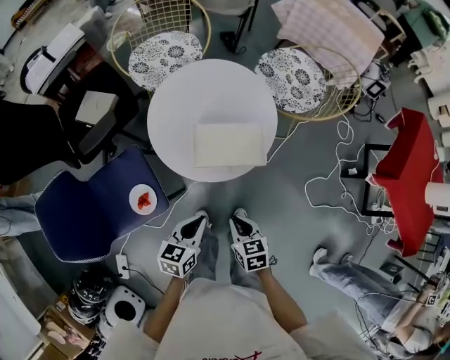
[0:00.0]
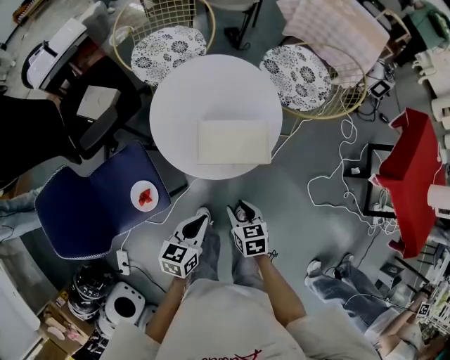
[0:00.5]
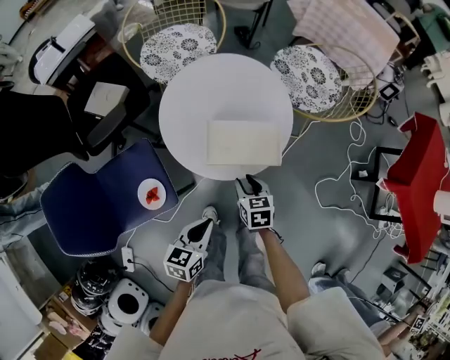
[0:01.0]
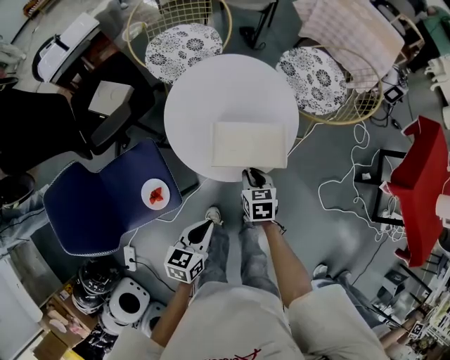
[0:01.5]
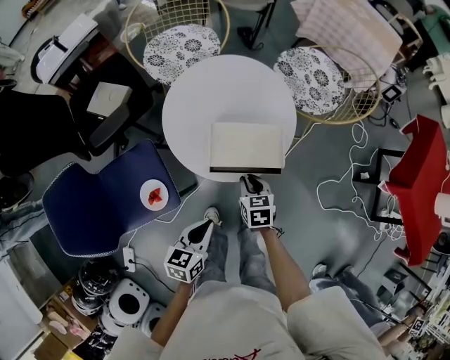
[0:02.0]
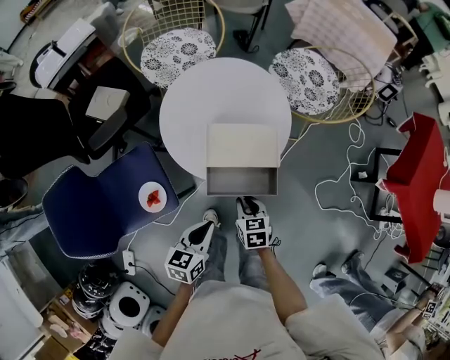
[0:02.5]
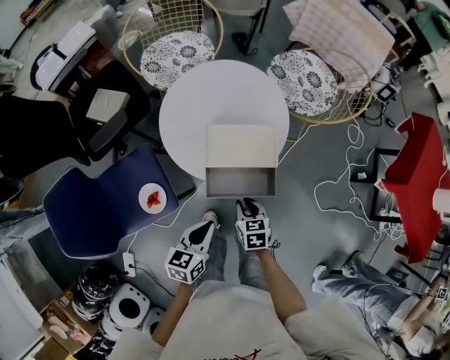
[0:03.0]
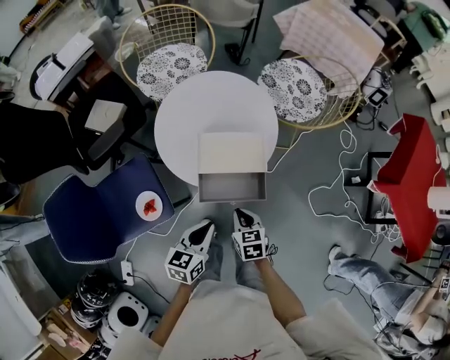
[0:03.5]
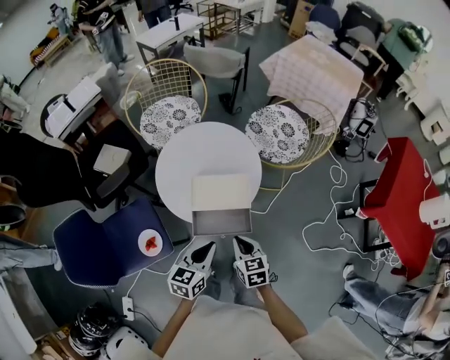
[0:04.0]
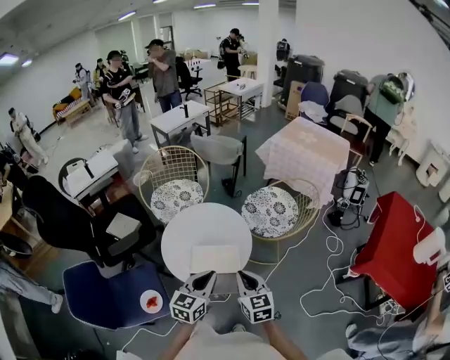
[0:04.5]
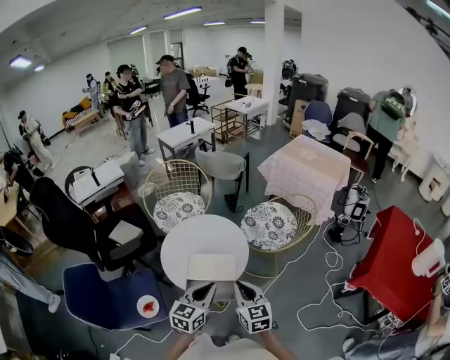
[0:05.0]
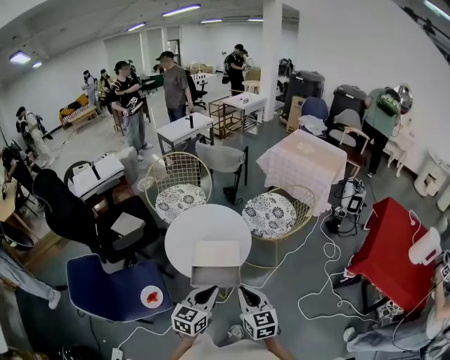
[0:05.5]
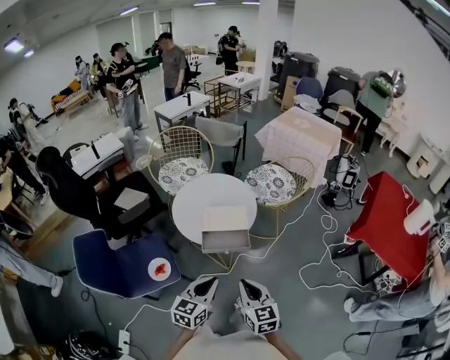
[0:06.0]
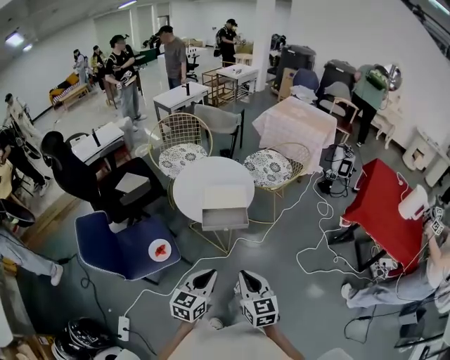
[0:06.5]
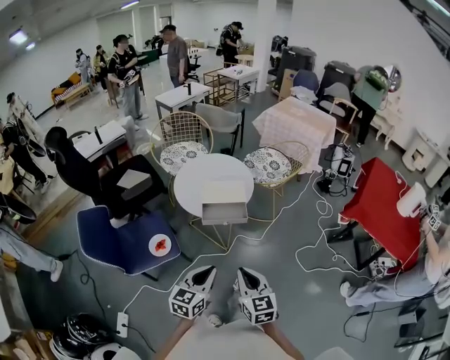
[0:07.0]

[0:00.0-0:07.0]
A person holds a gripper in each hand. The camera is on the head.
0:00.0 to 0:02.0: The right gripper travels forward by roughly 15 cm, and opens, then closes once more.
0:02.0 to 0:03.5: The right gripper travels backward by about 10 cm.
0:03.5 to 0:05.0: The right gripper travels upward by approximately 25 cm, and angles its fingers upward, by approximately 30 degrees. The left gripper shifts roughly 20 cm upward, to the right and forward, and rotates roughly 20 degrees.
0:05.0 to 0:07.0: Both grippers move backward, approximately 30 cm.

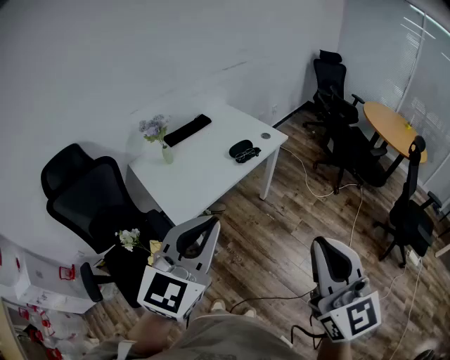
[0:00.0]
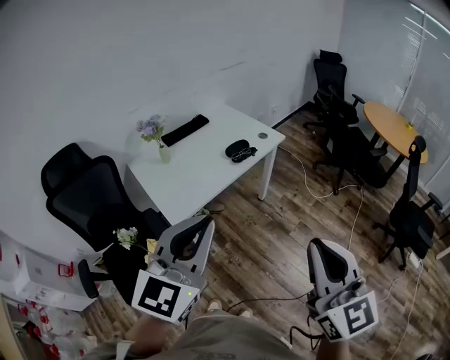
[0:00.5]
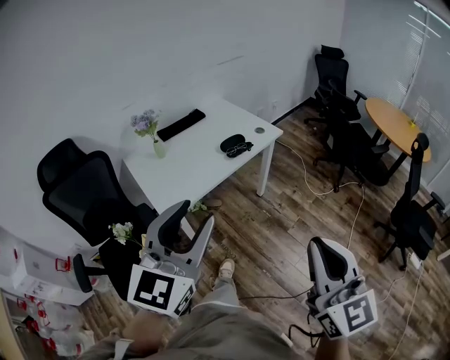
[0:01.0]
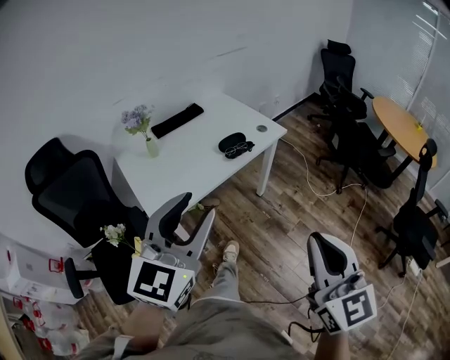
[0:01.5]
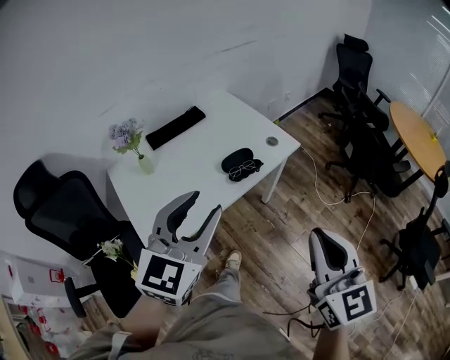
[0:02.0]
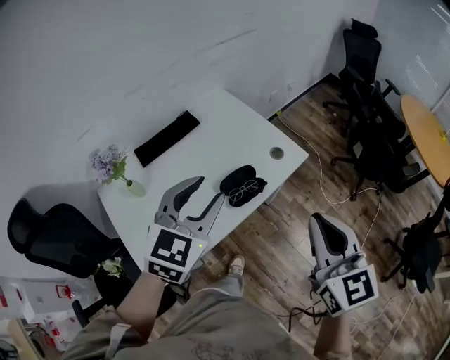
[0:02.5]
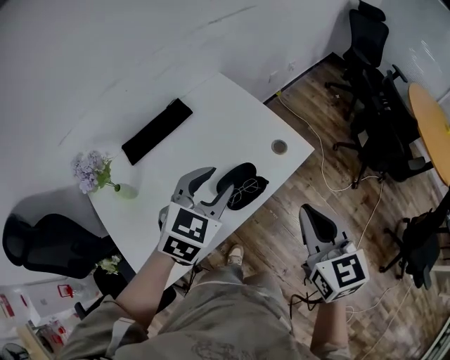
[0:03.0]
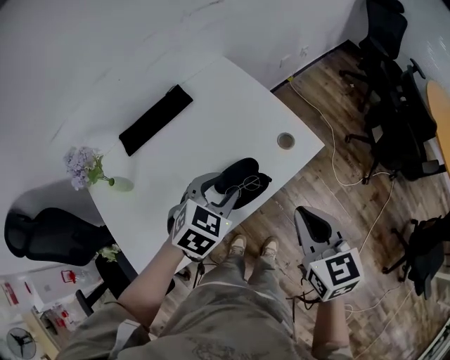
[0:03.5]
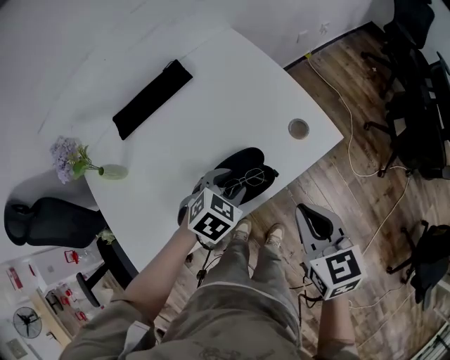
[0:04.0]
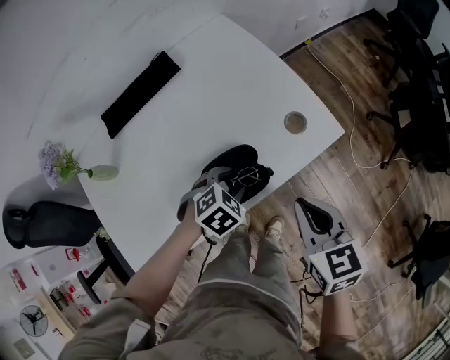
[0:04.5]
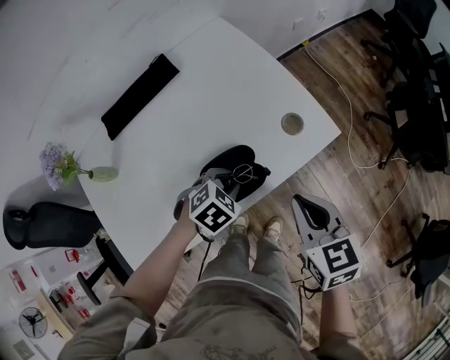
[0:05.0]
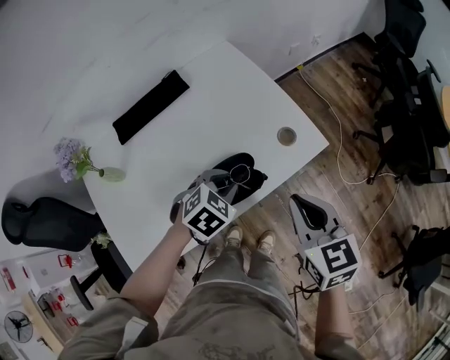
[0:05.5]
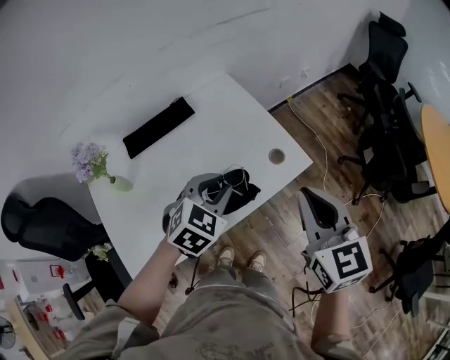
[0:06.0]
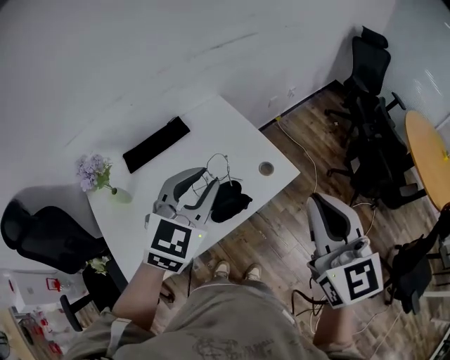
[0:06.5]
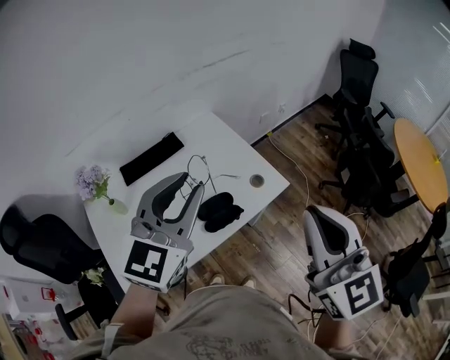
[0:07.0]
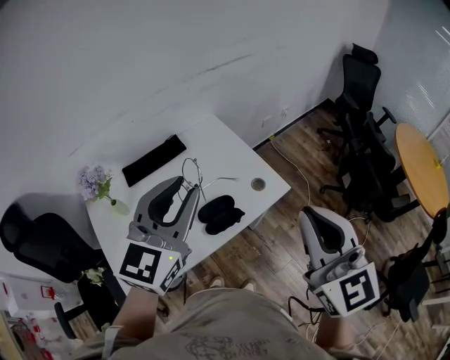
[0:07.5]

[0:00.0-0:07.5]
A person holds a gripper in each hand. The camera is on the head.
0:00.0 to 0:02.0: The grippers both shift forward by some 25 cm. The left gripper opens its fingers.
0:02.0 to 0:04.0: The right gripper shifts some 35 cm forward and downward, and swivels approximately 30 degrees, while the left gripper heads downward and forward, covering approximately 40 cm, and angles its fingers downward, by approximately 50 degrees.
0:04.0 to 0:05.5: The left gripper reaches about 5 cm downward, then returns, and closes up.
0:05.5 to 0:07.5: Both grippers travel together upward, about 30 cm. The right gripper turns by approximately 30 degrees. The left gripper tilts its fingers about 60 degrees upward.

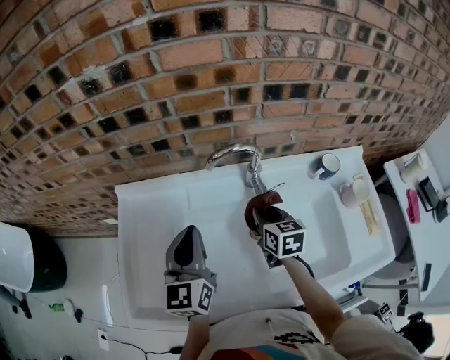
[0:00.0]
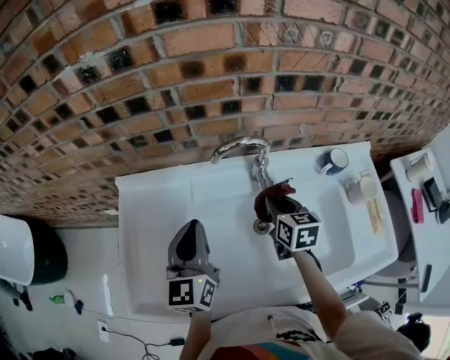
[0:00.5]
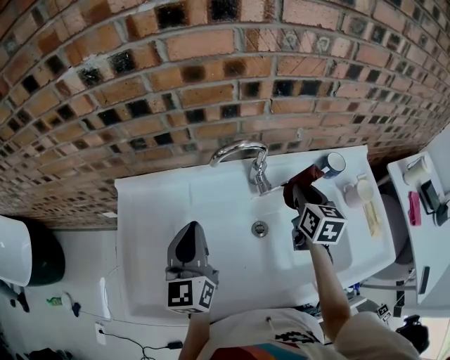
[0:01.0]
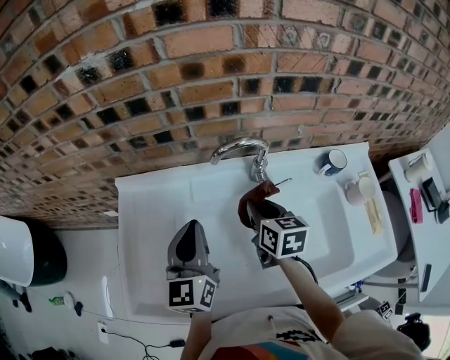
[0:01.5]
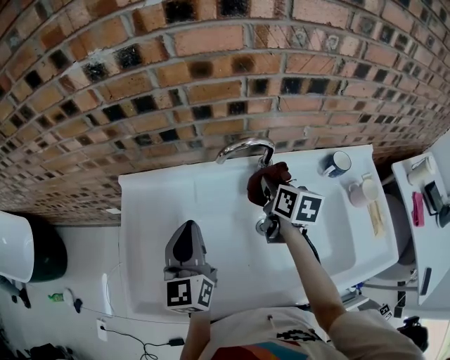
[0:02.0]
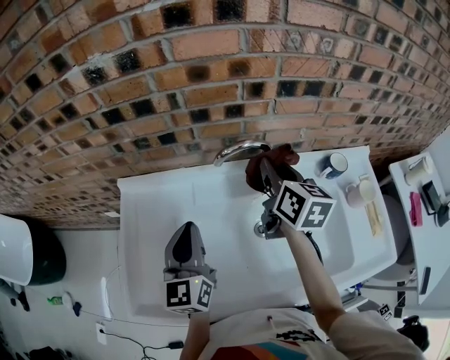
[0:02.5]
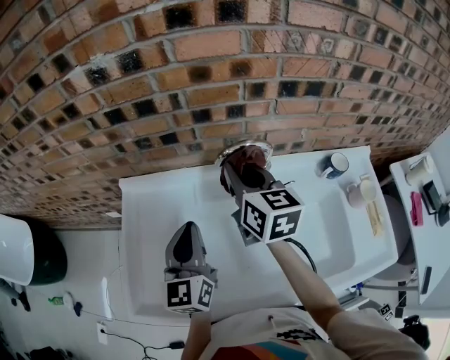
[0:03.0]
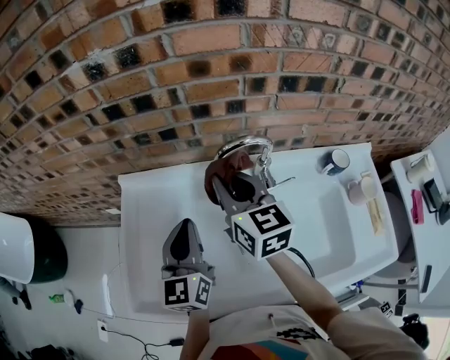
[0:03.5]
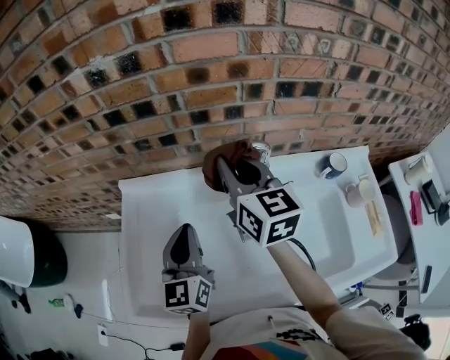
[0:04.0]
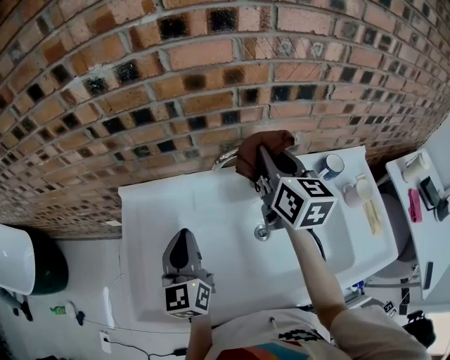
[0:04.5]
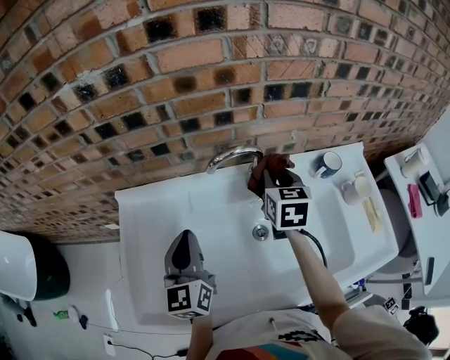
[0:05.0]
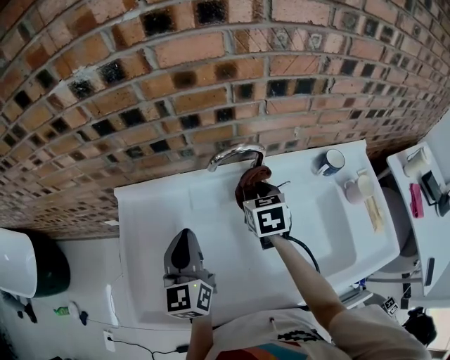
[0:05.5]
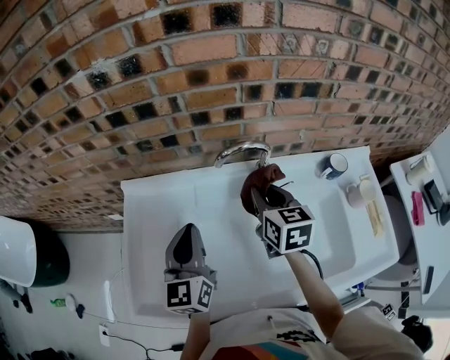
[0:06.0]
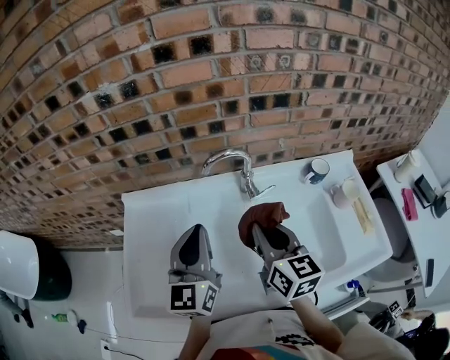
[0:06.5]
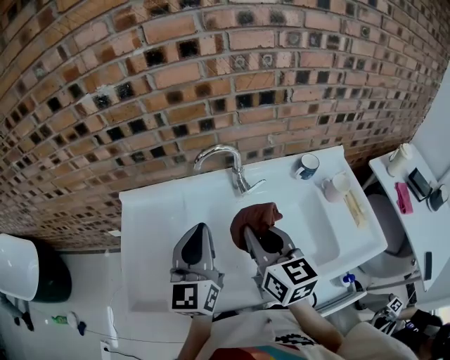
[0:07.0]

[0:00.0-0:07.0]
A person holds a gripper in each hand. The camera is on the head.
0:00.0 to 0:02.0: The right gripper swings left and right, about 15 cm each way, with 2 reversals.
0:02.0 to 0:03.5: The right gripper travels to the left and upward by about 20 cm, and turns by some 30 degrees.
0:03.5 to 0:05.0: The right gripper travels to the right and downward by approximately 15 cm, and swivels approximately 30 degrees.
0:05.0 to 0:07.0: The left gripper shifts about 15 cm upward, to the right and backward. The right gripper travels backward by about 20 cm, and turns by some 30 degrees.

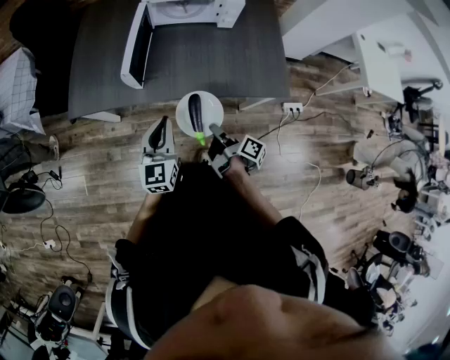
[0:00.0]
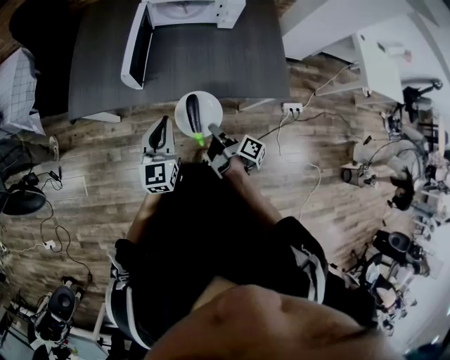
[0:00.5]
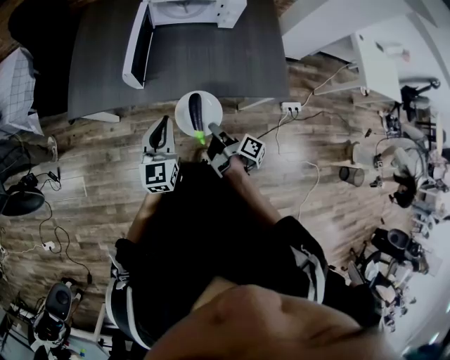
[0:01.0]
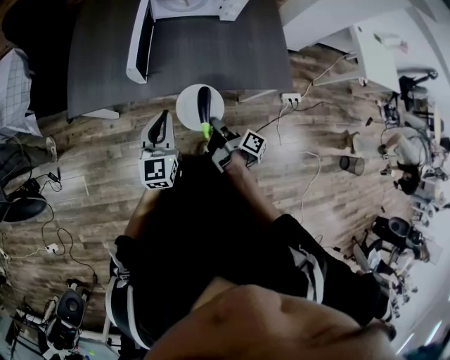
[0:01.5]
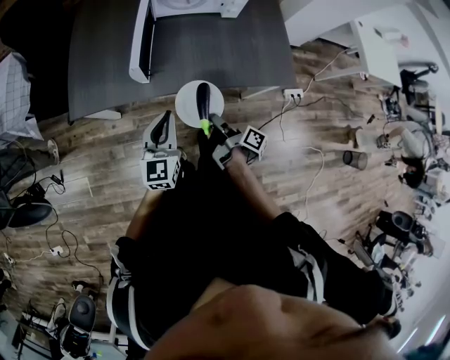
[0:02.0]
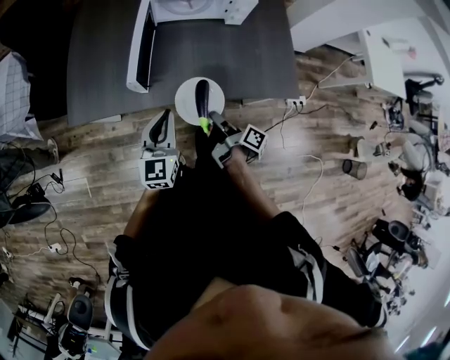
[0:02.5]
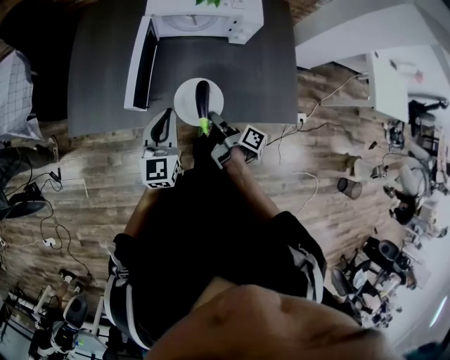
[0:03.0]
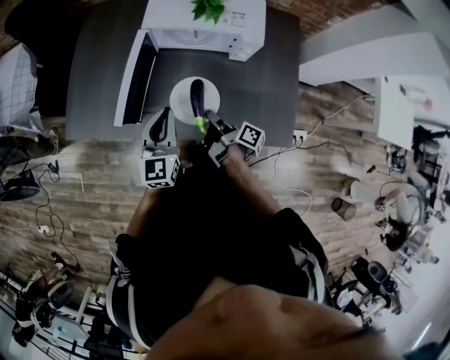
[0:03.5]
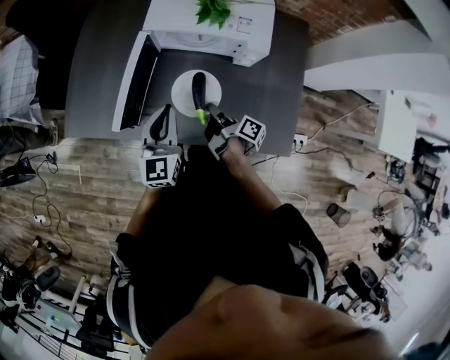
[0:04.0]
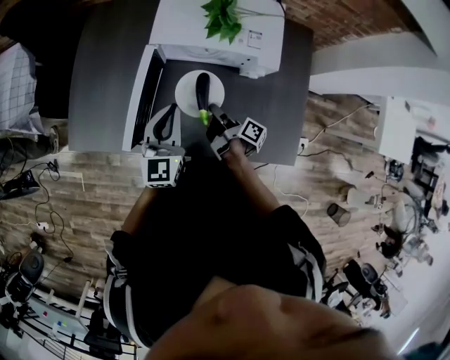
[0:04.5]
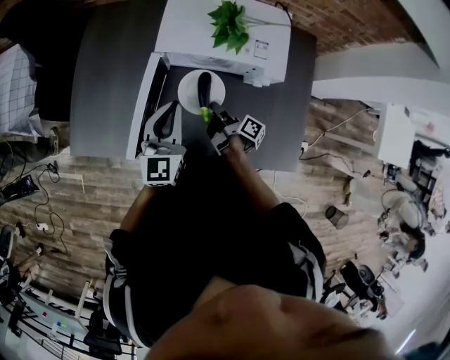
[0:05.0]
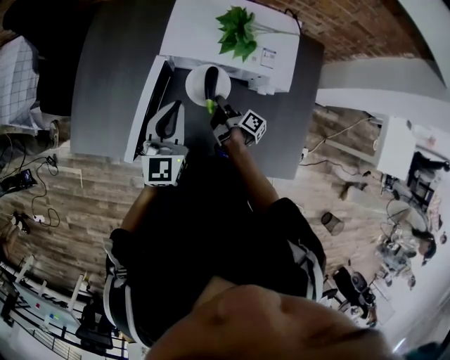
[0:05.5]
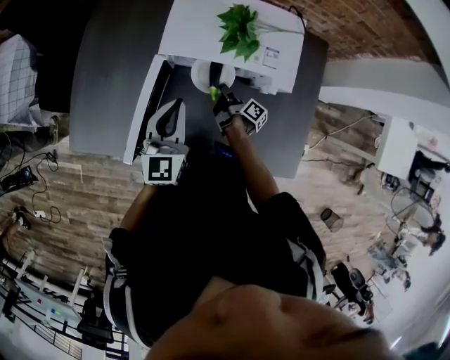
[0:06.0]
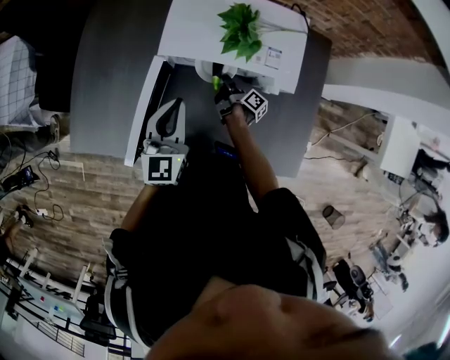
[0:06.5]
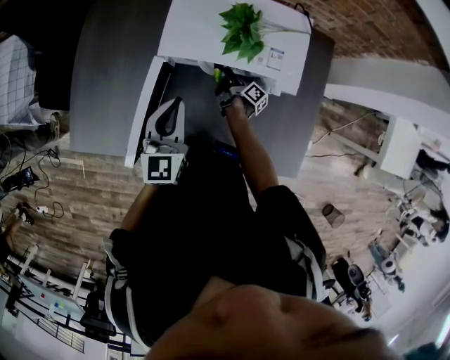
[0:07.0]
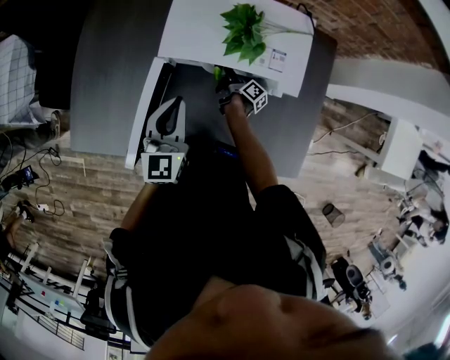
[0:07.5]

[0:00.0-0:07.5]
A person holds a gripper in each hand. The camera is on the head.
0:02.0 to 0:04.0: The left gripper ends up about 30 cm from where it was.
0:04.0 to 0:05.5: The left gripper moves some 15 cm.
0:05.5 to 0:07.5: The left gripper shifts by some 5 cm.
